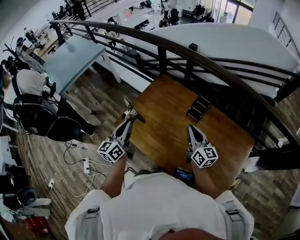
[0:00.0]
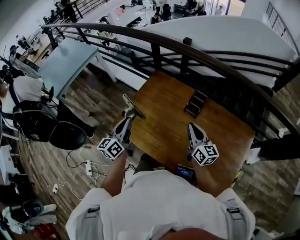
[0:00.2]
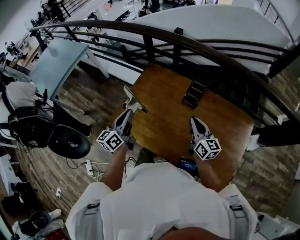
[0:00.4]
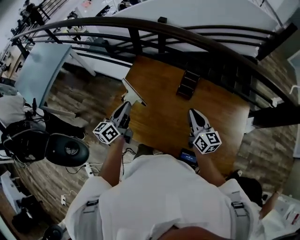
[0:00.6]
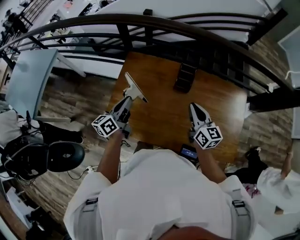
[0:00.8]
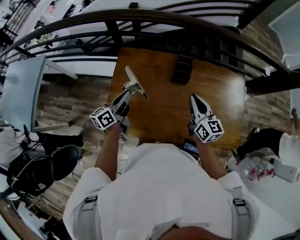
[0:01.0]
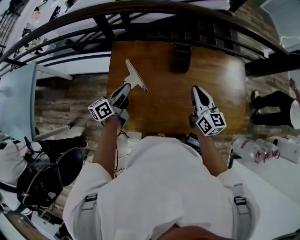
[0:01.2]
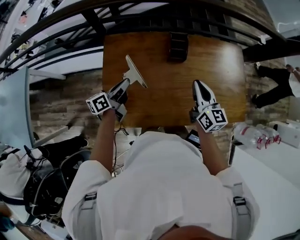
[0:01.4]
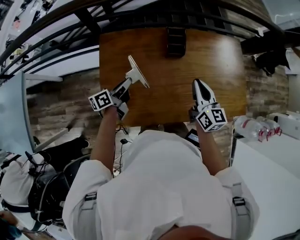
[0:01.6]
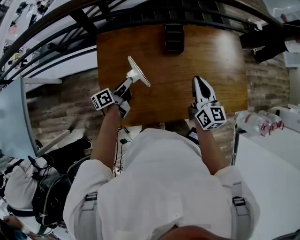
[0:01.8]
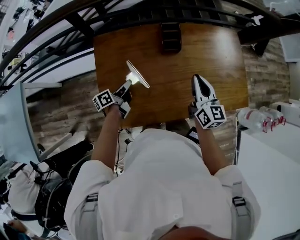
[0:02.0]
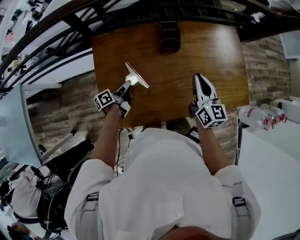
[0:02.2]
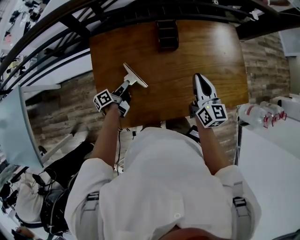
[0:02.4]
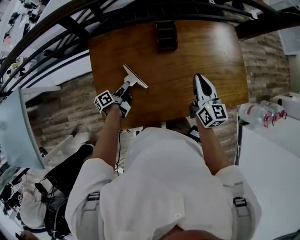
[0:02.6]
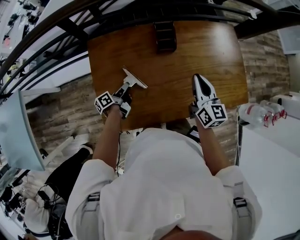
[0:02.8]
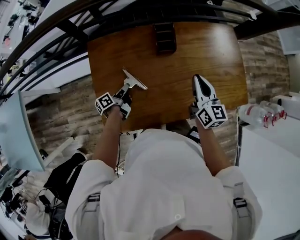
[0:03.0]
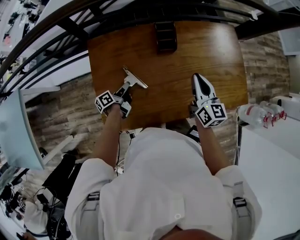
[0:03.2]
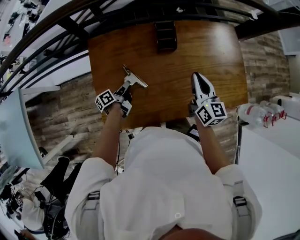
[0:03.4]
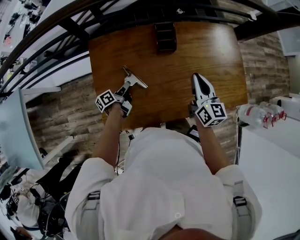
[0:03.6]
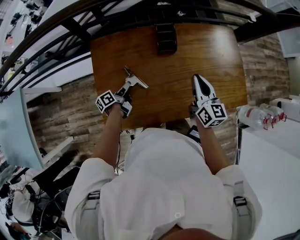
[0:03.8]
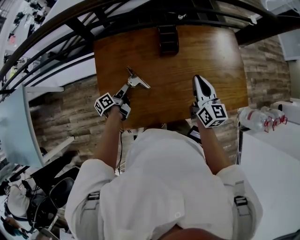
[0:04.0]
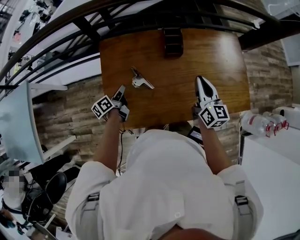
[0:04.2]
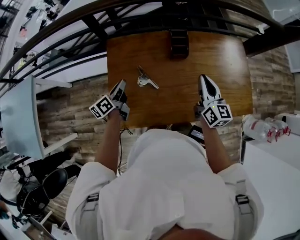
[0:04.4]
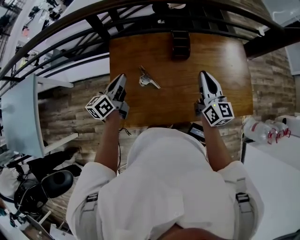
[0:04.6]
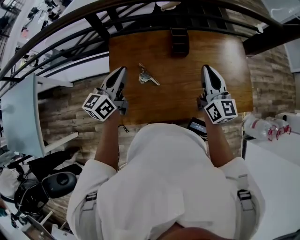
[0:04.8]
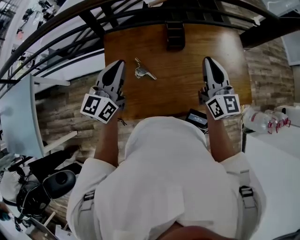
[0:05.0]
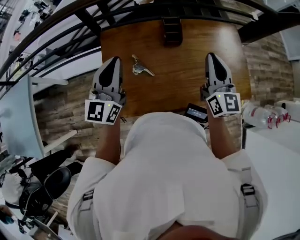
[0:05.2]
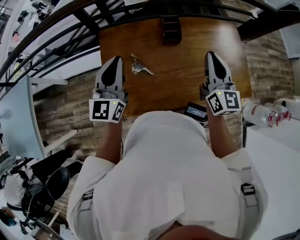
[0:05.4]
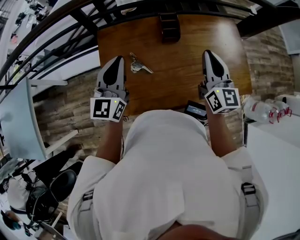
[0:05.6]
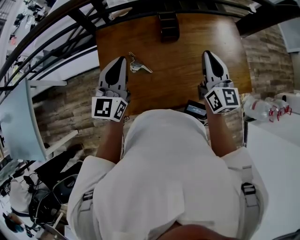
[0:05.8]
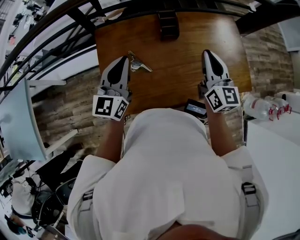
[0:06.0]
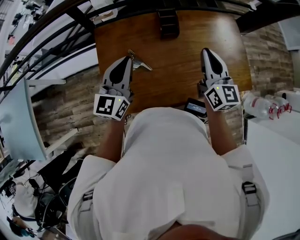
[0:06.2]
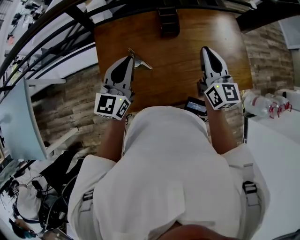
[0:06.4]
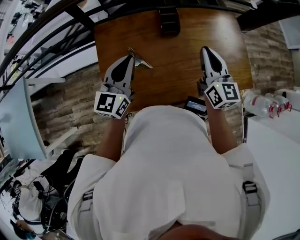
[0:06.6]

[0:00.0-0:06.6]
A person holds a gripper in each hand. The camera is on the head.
0:00.0 to 0:01.6: The left gripper is displaced downward by about 20 cm, and turns by some 70 degrees. Meanwhile the right gripper turns by roughly 50 degrees.
0:01.6 to 0:03.2: The left gripper heads downward, covering about 15 cm, and turns by some 20 degrees.
0:03.2 to 0:05.0: The left gripper moves upward, approximately 35 cm, and rolls clockwise, seen from behind, by roughly 70 degrees. Meanwhile the right gripper is displaced upward by about 15 cm.
0:05.0 to 0:06.6: The left gripper moves roughly 5 cm.

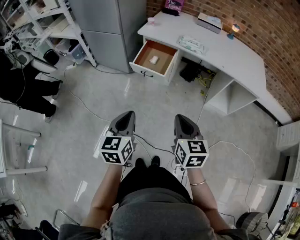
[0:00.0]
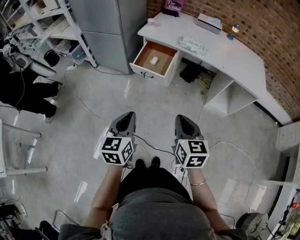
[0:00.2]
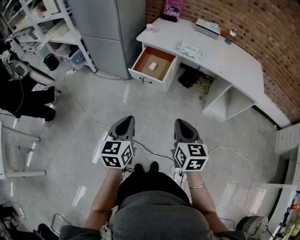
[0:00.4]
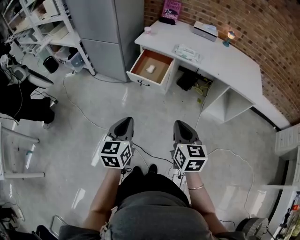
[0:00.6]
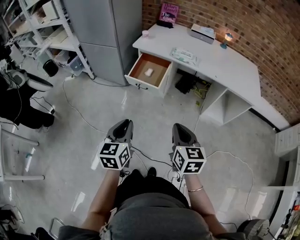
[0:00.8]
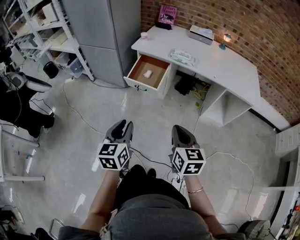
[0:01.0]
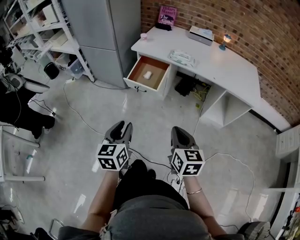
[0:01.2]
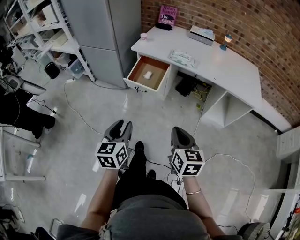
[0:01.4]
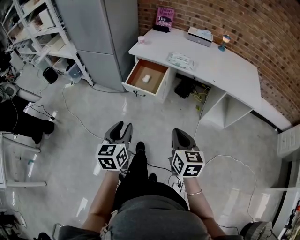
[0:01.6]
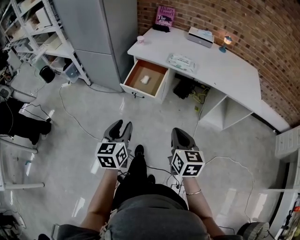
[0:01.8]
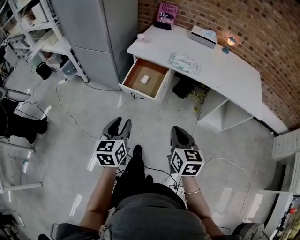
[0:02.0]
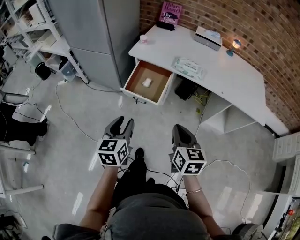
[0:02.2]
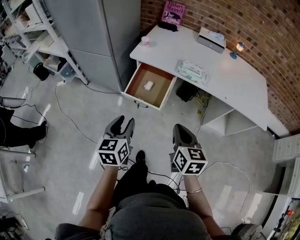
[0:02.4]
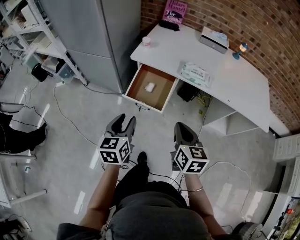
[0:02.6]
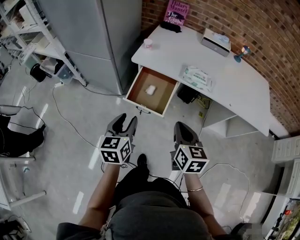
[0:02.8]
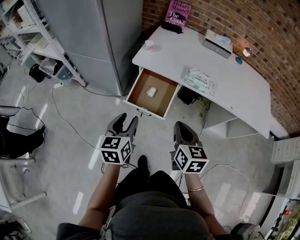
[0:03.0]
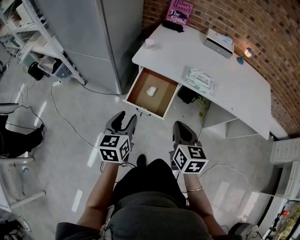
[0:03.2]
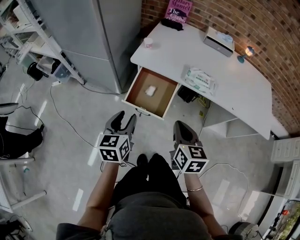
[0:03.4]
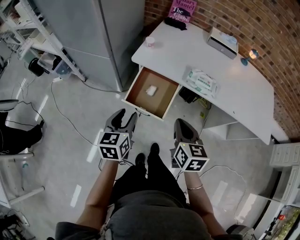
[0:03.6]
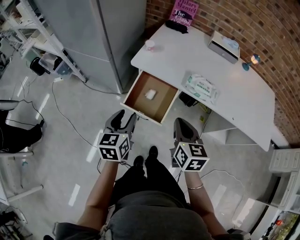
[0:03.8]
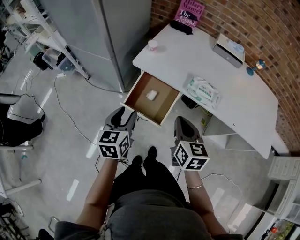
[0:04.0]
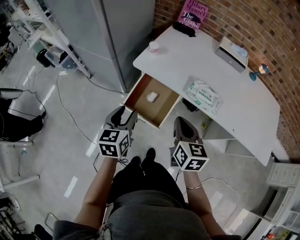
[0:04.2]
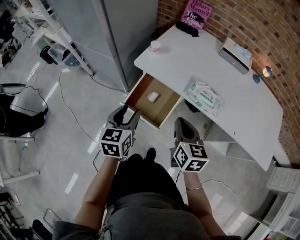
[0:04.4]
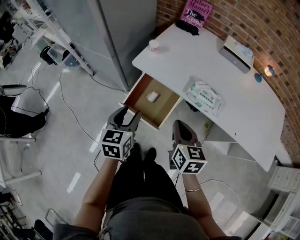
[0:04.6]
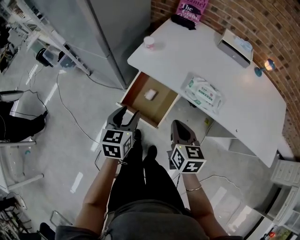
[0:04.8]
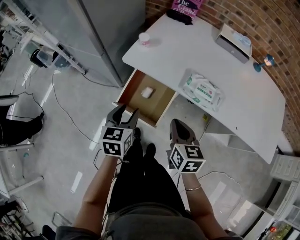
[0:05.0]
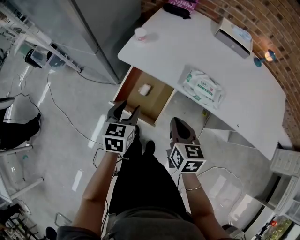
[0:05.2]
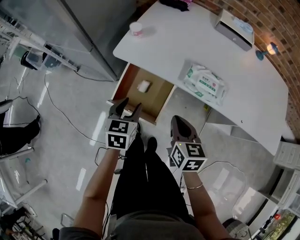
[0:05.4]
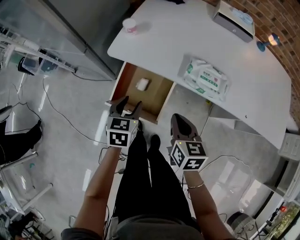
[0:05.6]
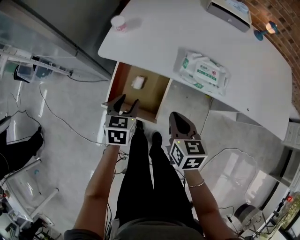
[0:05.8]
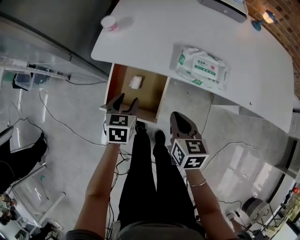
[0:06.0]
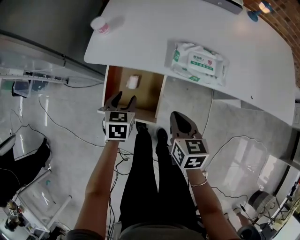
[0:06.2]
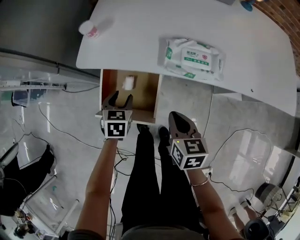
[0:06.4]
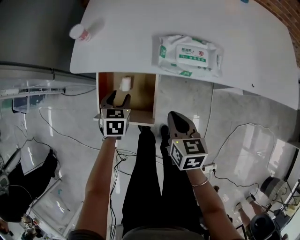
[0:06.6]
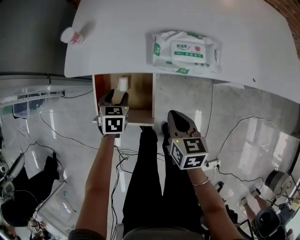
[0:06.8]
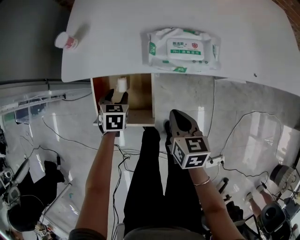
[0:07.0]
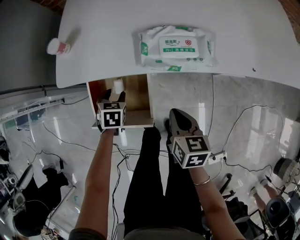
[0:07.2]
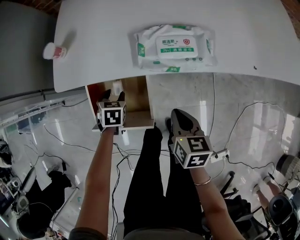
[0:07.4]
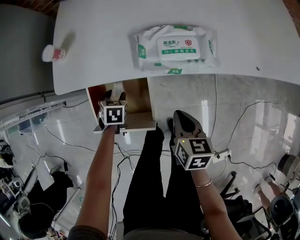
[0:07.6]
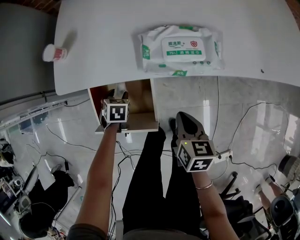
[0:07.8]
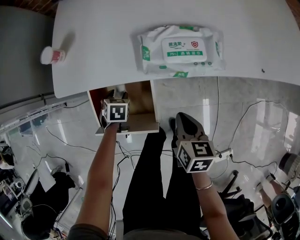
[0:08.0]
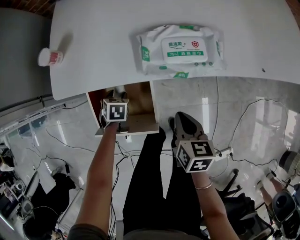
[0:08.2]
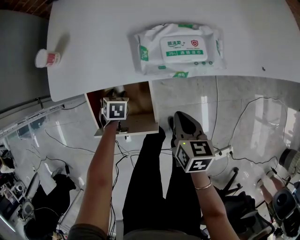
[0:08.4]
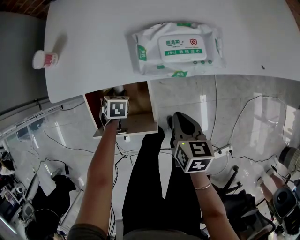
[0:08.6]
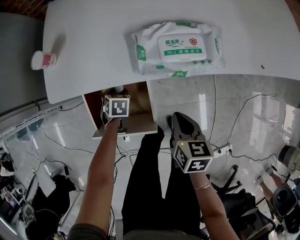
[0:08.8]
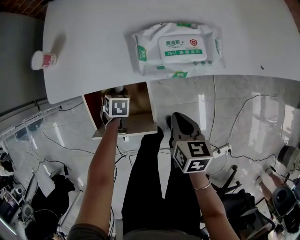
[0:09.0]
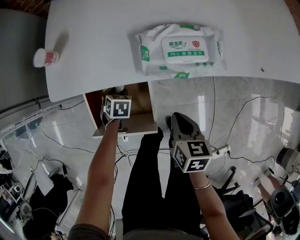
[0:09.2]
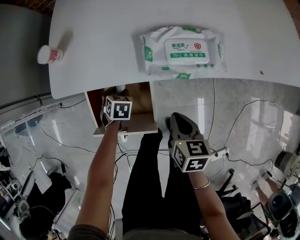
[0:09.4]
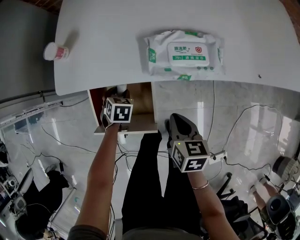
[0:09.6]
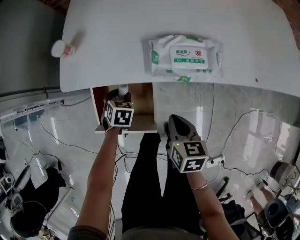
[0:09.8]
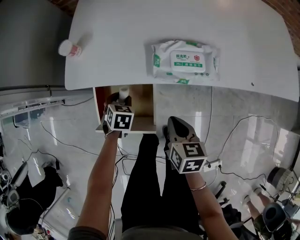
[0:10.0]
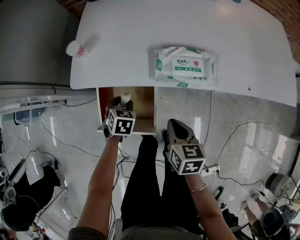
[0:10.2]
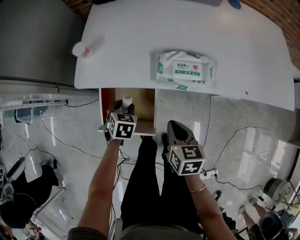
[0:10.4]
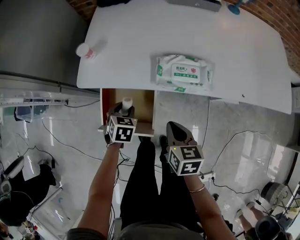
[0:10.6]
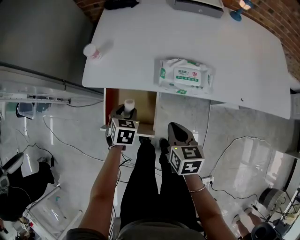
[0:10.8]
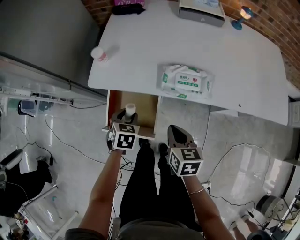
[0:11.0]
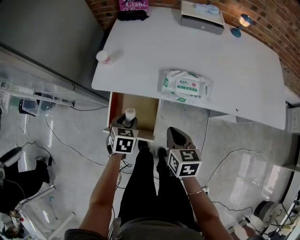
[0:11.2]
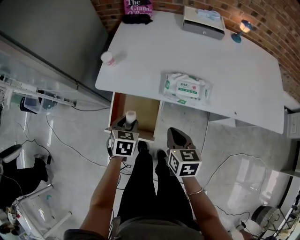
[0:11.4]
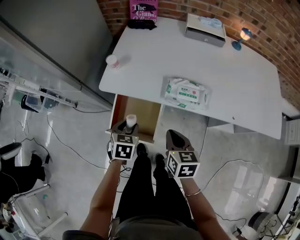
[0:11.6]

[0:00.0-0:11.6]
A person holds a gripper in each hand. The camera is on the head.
0:00.0 to 0:01.4: The left gripper opens. Meanwhile the right gripper moves some 5 cm.
0:01.4 to 0:02.8: The two grippers go roughly 25 cm forward.
0:02.8 to 0:04.4: Both grippers move forward, approximately 15 cm.
0:04.4 to 0:05.8: The right gripper shifts some 10 cm downward. Meanwhile the left gripper is displaced downward and forward by some 15 cm, and swivels some 20 degrees.
0:05.8 to 0:07.2: The left gripper travels downward and forward by approximately 15 cm, and swivels some 30 degrees; the right gripper moves downward, some 10 cm.
0:07.2 to 0:08.8: The left gripper moves downward, about 10 cm.
0:08.8 to 0:10.2: The right gripper travels upward by approximately 5 cm. The left gripper is displaced upward by about 10 cm.
0:10.2 to 0:11.6: The left gripper heads upward and backward, covering some 15 cm. The right gripper shifts roughly 10 cm upward.

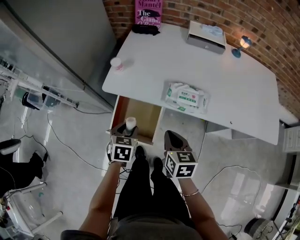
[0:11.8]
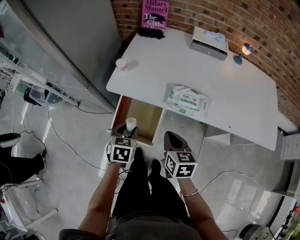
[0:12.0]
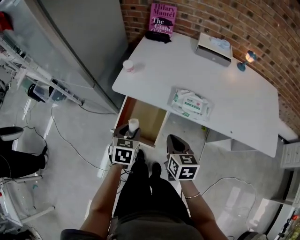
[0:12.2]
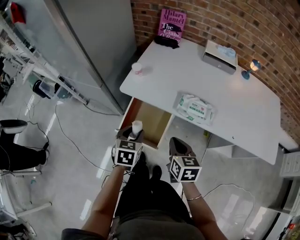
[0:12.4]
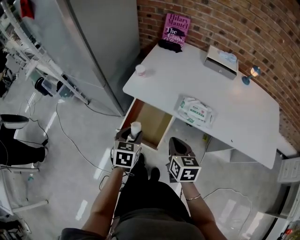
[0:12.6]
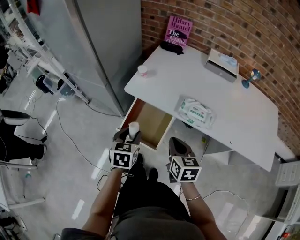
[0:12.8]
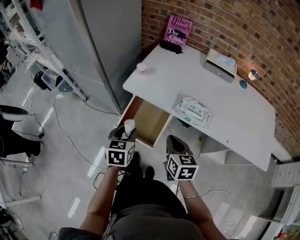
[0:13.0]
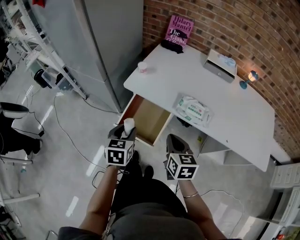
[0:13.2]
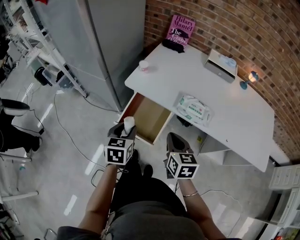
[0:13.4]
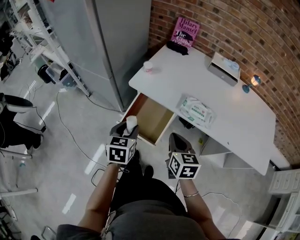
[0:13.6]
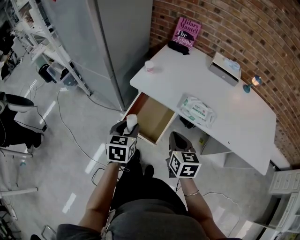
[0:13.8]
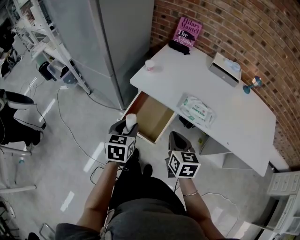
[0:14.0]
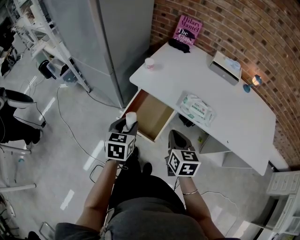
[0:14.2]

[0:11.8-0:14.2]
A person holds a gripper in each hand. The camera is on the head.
0:11.8 to 0:13.0: The right gripper changes place by some 5 cm. Meanwhile the left gripper heads upward, covering roughly 10 cm, and swivels roughly 20 degrees.
0:13.0 to 0:14.2: The grippers move only a little.

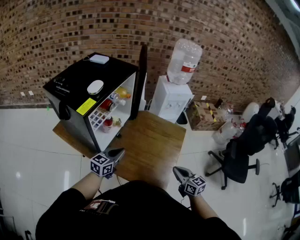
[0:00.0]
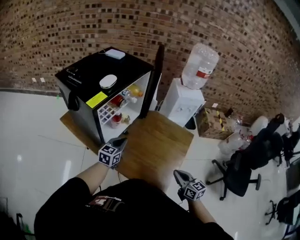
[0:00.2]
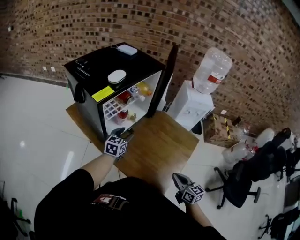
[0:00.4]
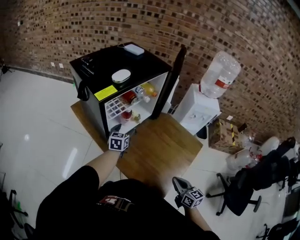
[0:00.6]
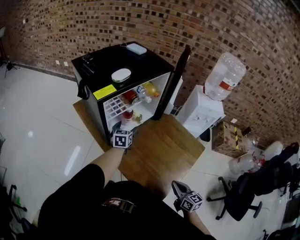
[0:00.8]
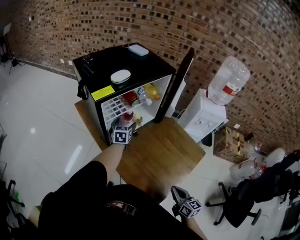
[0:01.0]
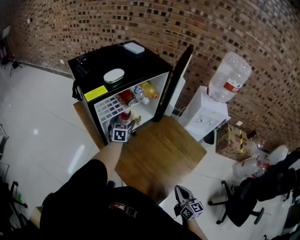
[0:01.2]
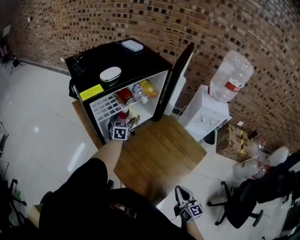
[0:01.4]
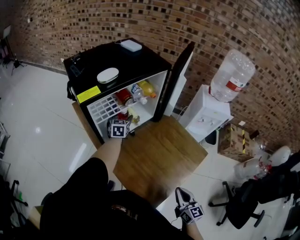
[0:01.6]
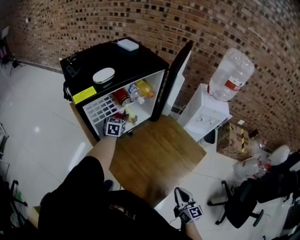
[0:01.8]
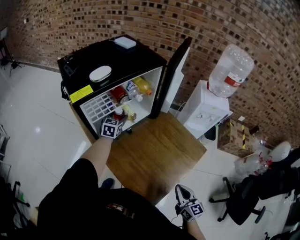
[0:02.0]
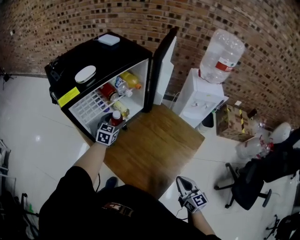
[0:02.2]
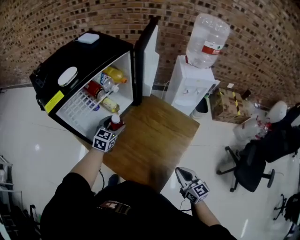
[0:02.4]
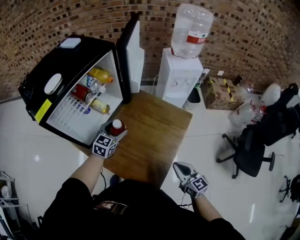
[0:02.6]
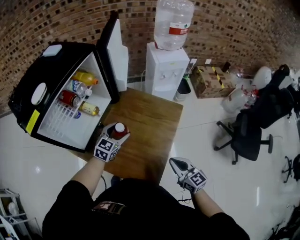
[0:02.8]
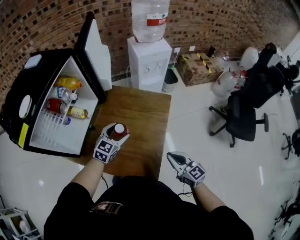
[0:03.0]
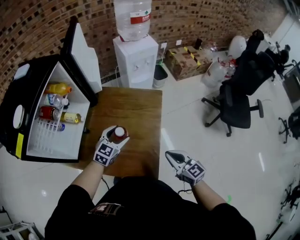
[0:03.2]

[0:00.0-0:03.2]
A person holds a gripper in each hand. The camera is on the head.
0:00.0 to 0:01.6: The left gripper changes place by approximately 30 cm, changes its angle by approximately 50 degrees, and opens; the right gripper moves approximately 10 cm.
0:01.6 to 0:03.2: The right gripper changes place by about 5 cm. Meanwhile the left gripper moves approximately 35 cm, and changes its angle by about 70 degrees.
